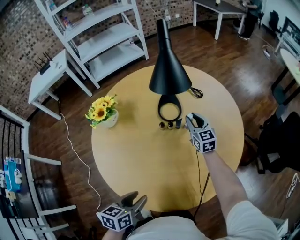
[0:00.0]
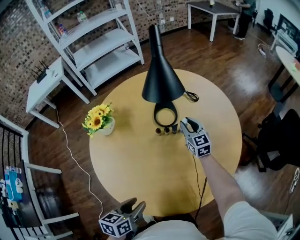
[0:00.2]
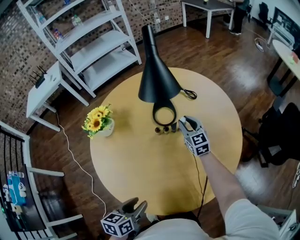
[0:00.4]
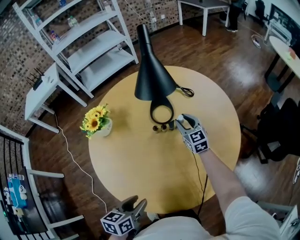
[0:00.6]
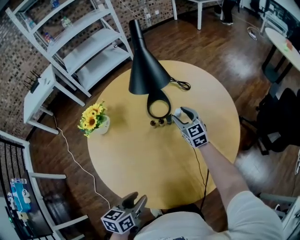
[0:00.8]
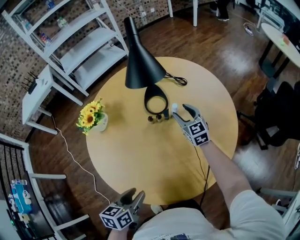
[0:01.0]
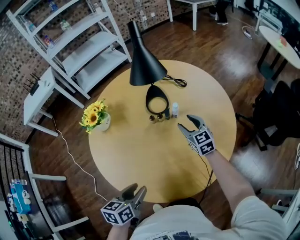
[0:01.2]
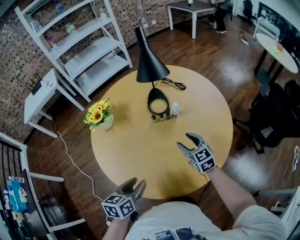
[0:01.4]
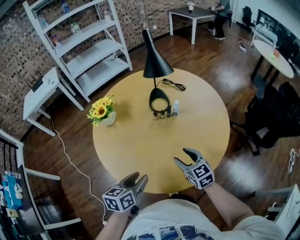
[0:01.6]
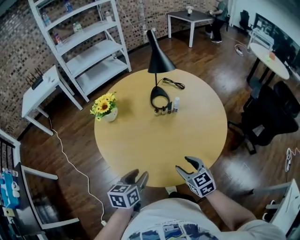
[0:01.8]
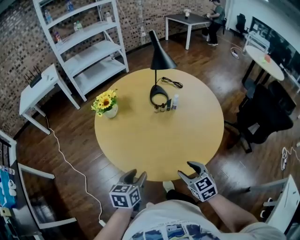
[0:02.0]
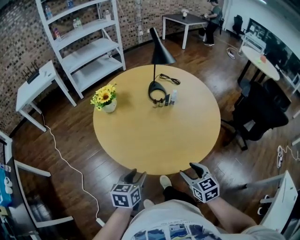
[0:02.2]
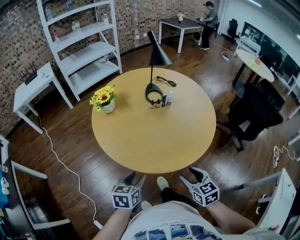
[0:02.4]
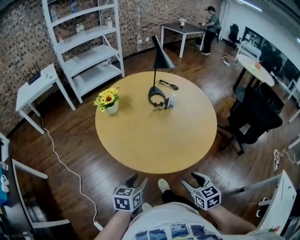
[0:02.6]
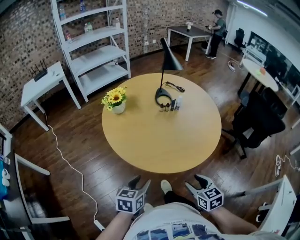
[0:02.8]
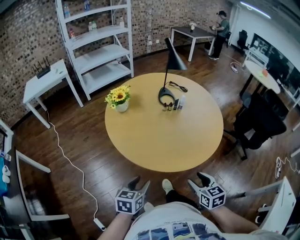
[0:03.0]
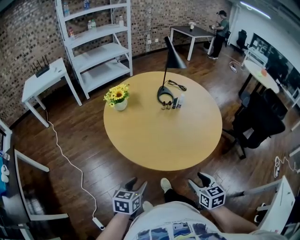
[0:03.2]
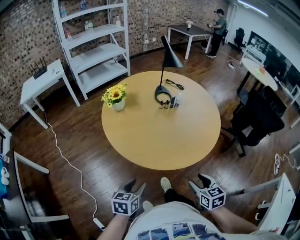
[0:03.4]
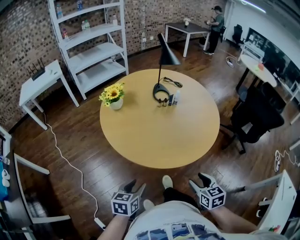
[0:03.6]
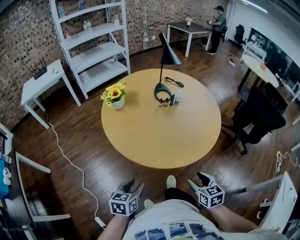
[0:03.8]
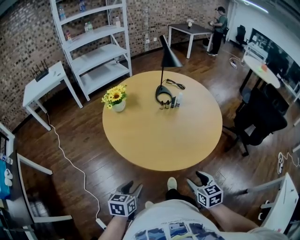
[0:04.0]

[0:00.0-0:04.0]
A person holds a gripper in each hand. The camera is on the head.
0:00.0 to 0:01.4: The right gripper is displaced backward by about 20 cm, and opens its fingers.
0:01.4 to 0:02.6: The left gripper moves backward and to the left, about 20 cm. The right gripper goes about 40 cm backward.
0:02.6 to 0:04.0: The left gripper shifts about 5 cm backward.

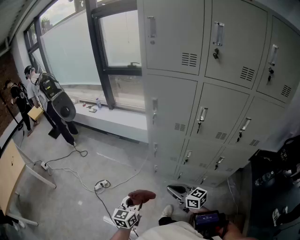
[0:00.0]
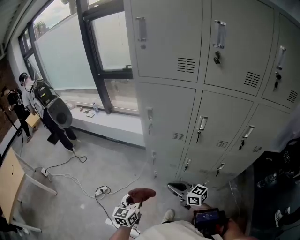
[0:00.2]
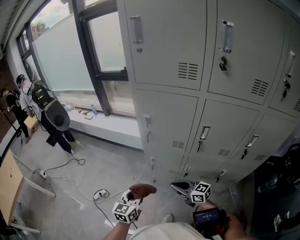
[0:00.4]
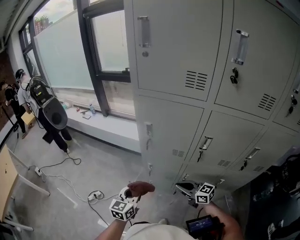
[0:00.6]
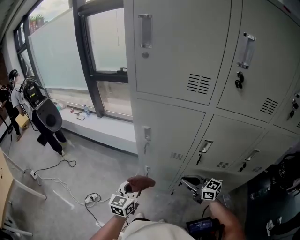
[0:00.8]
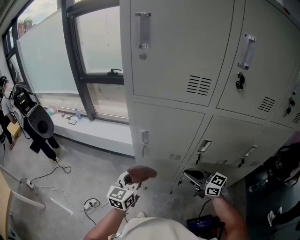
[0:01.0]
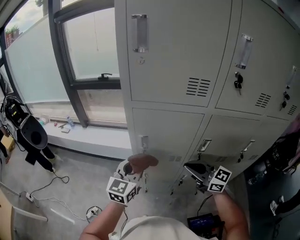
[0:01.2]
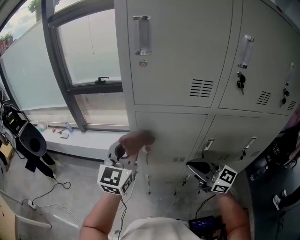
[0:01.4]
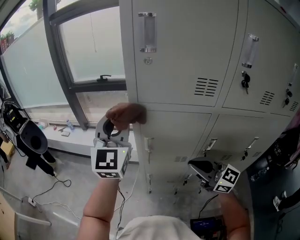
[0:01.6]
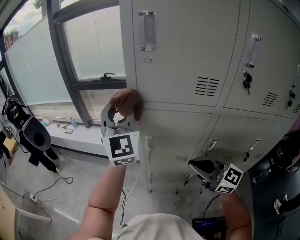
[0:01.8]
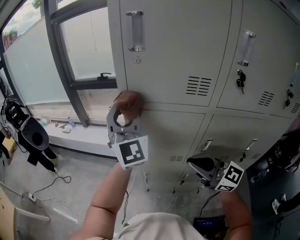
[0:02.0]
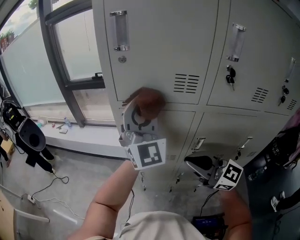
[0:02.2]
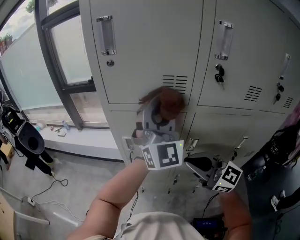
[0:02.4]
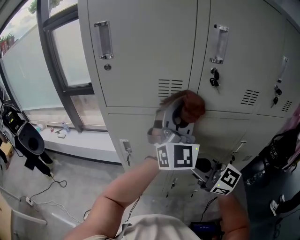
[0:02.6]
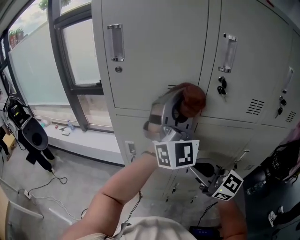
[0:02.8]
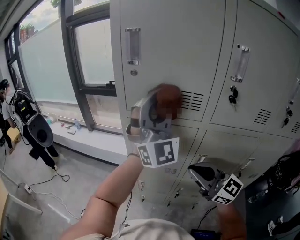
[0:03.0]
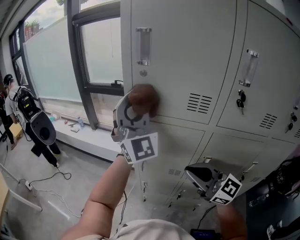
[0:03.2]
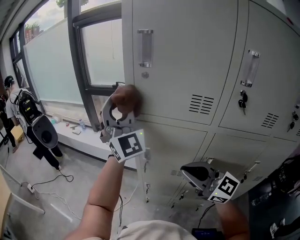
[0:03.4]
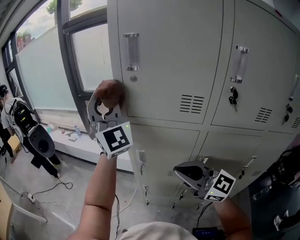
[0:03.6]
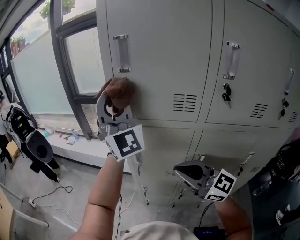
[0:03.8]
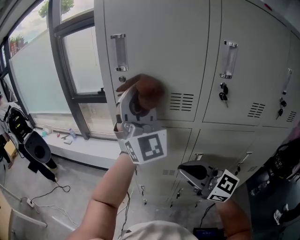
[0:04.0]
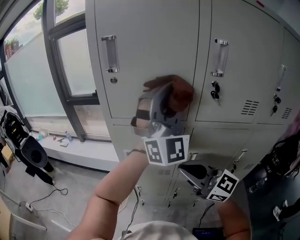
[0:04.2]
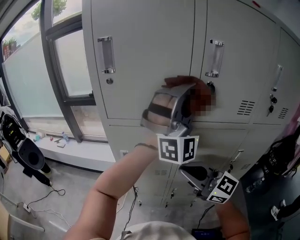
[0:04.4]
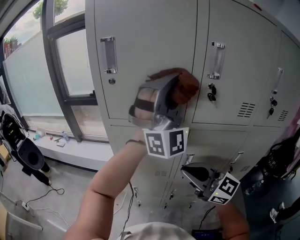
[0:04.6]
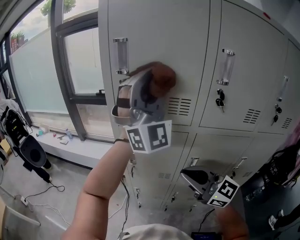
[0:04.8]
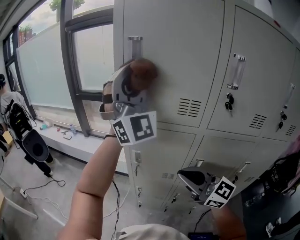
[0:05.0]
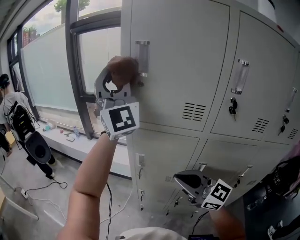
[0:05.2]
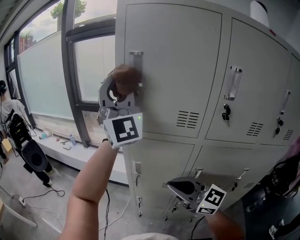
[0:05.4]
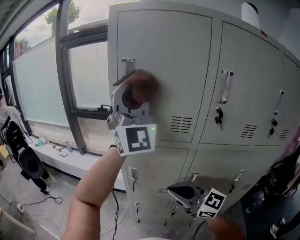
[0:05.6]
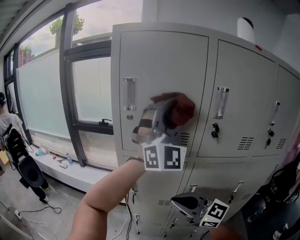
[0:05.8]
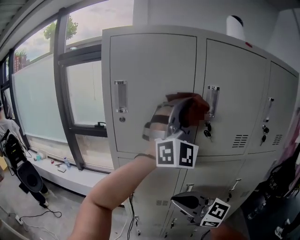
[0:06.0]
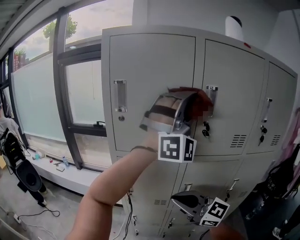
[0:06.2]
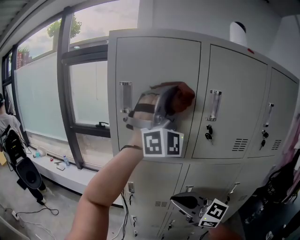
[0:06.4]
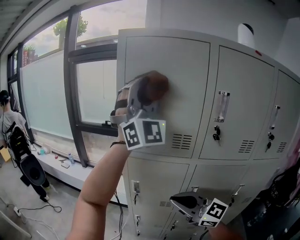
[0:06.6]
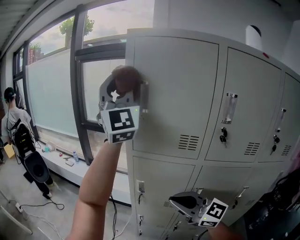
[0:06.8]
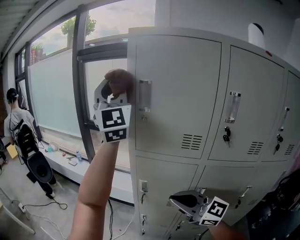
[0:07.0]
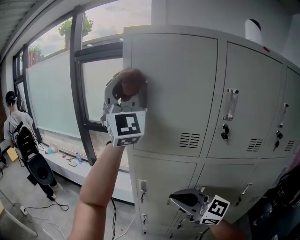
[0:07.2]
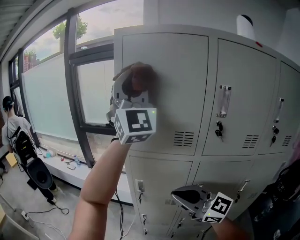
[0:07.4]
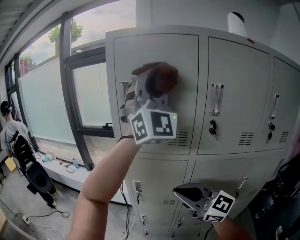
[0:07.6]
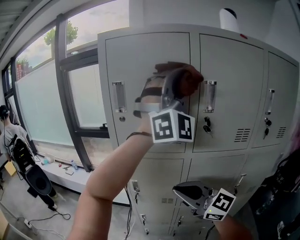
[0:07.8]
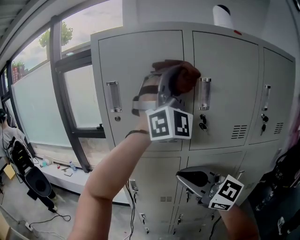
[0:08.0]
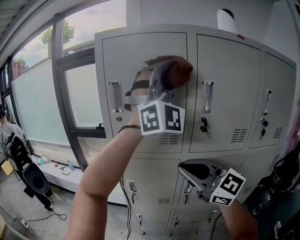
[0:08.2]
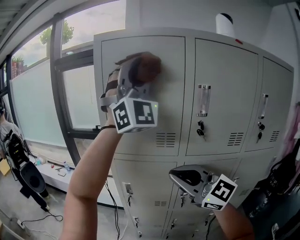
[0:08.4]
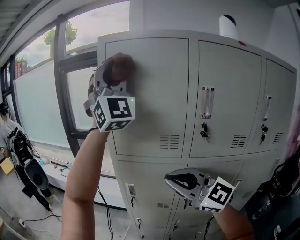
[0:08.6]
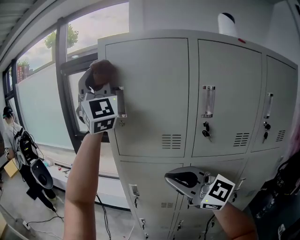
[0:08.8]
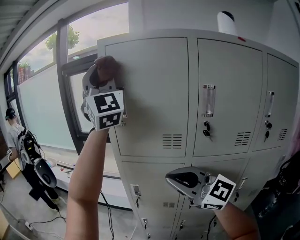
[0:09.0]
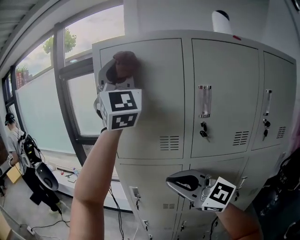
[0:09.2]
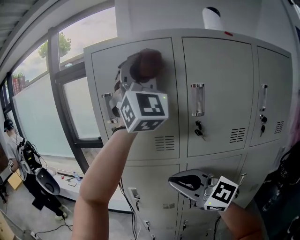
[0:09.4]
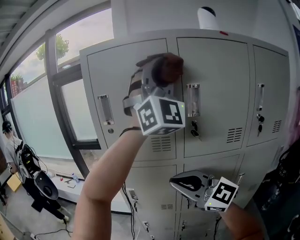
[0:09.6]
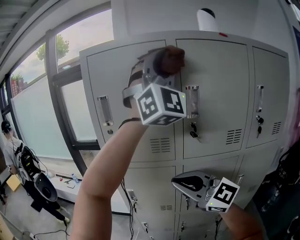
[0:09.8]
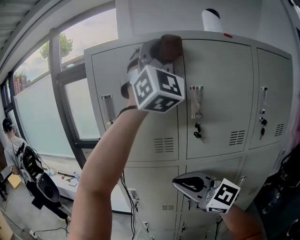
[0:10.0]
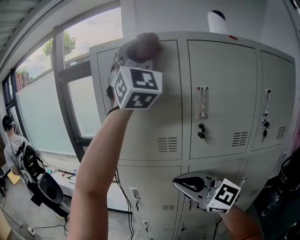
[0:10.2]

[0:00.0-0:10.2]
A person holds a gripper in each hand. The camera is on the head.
0:00.0 to 0:01.4: The left gripper travels forward and upward by approximately 50 cm, and turns by approximately 30 degrees; the right gripper moves forward, upward and to the right, about 35 cm, and changes its angle by roughly 30 degrees.
0:01.4 to 0:03.0: The left gripper travels upward and to the right by roughly 25 cm, and tips its fingers upward by roughly 30 degrees. The right gripper moves upward, some 10 cm.
0:03.0 to 0:04.4: The left gripper moves about 15 cm, and swivels about 20 degrees.
0:04.4 to 0:05.8: The right gripper shifts about 5 cm to the left. The left gripper heads upward, covering about 5 cm, and goes to the left and returns, roughly 25 cm each way.
0:05.8 to 0:07.2: The left gripper ends up some 20 cm from where it was, and turns by roughly 20 degrees.
0:07.2 to 0:08.8: The left gripper goes about 5 cm upward, and moves some 20 cm to the right and comes back. Meanwhile the right gripper moves upward, some 10 cm.
0:08.8 to 0:10.2: The left gripper heads to the right, backward and upward, covering roughly 20 cm.

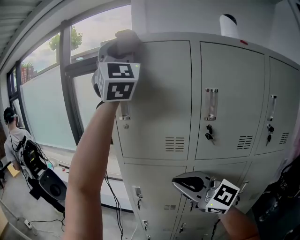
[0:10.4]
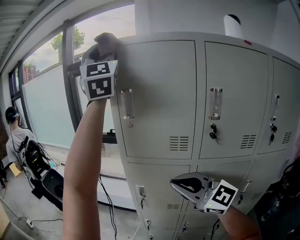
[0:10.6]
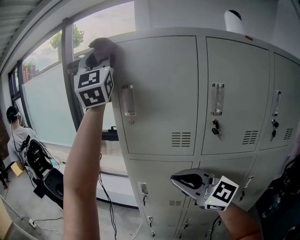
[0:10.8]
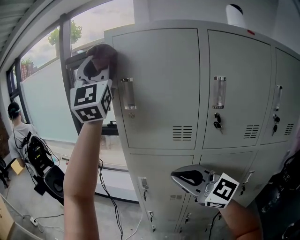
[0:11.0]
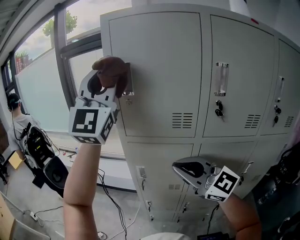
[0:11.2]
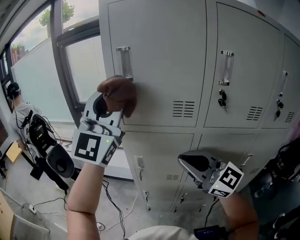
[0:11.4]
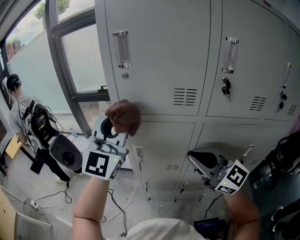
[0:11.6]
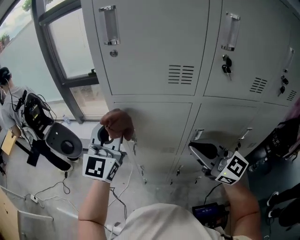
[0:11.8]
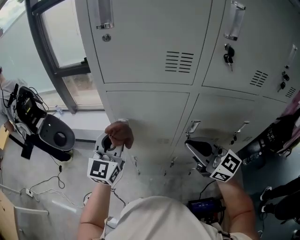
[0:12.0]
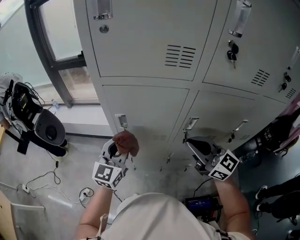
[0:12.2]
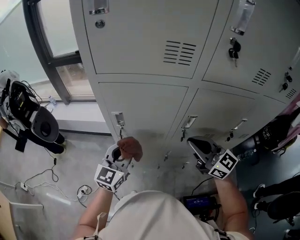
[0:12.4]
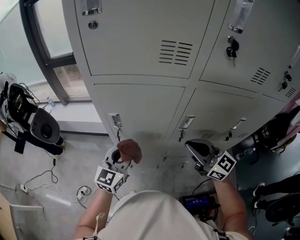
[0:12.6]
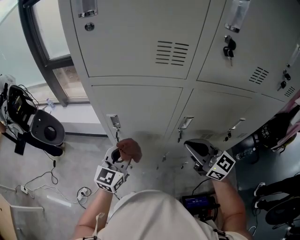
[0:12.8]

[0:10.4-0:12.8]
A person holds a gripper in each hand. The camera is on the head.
0:10.4 to 0:11.6: The right gripper shifts approximately 5 cm downward. The left gripper is displaced downward by approximately 35 cm, and swivels about 40 degrees.
0:11.6 to 0:12.8: The right gripper moves downward and to the right, approximately 15 cm, while the left gripper travels downward by some 30 cm, and changes its angle by some 40 degrees.

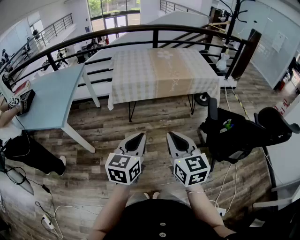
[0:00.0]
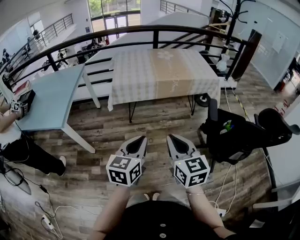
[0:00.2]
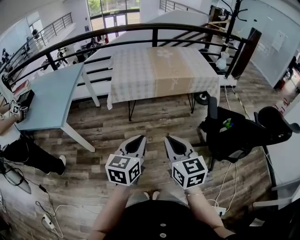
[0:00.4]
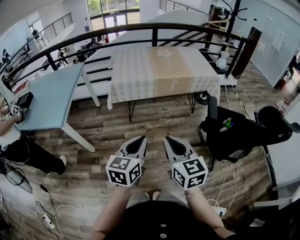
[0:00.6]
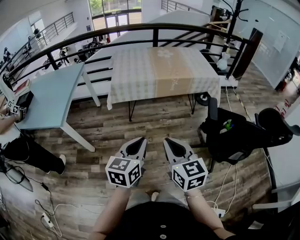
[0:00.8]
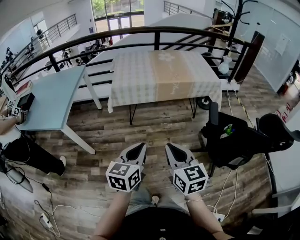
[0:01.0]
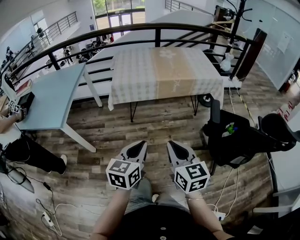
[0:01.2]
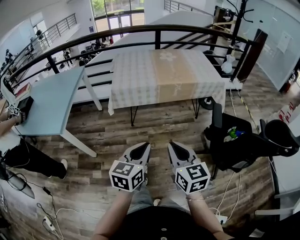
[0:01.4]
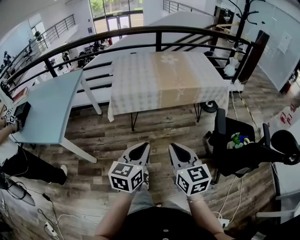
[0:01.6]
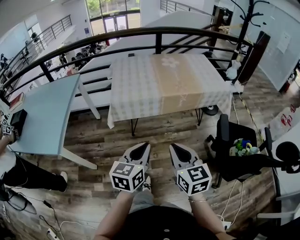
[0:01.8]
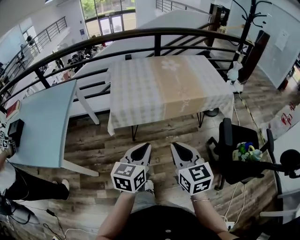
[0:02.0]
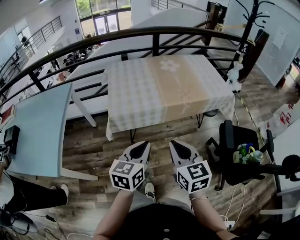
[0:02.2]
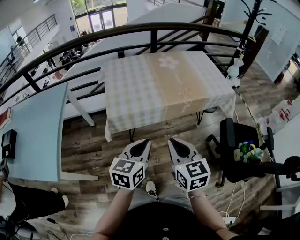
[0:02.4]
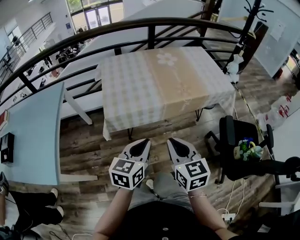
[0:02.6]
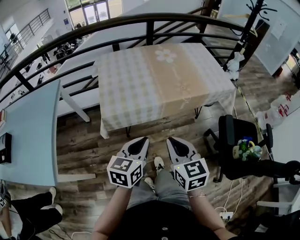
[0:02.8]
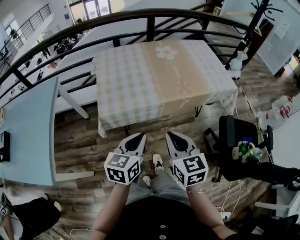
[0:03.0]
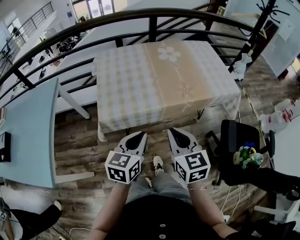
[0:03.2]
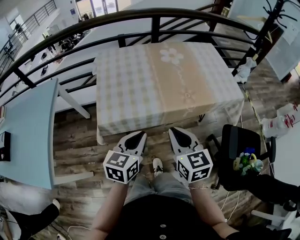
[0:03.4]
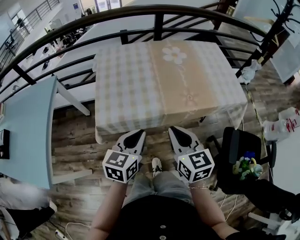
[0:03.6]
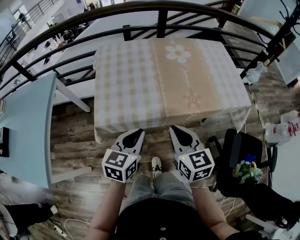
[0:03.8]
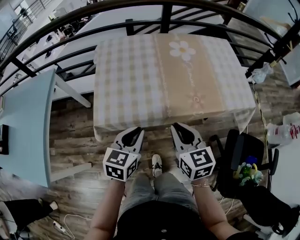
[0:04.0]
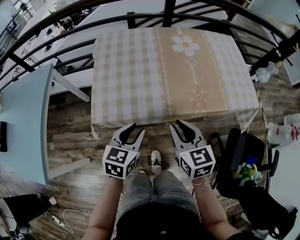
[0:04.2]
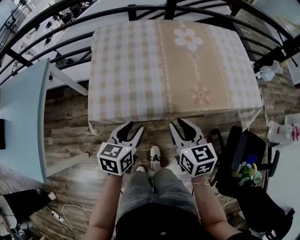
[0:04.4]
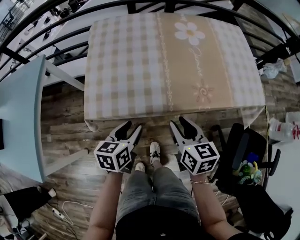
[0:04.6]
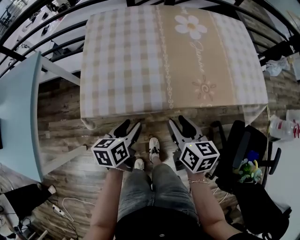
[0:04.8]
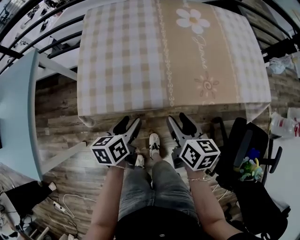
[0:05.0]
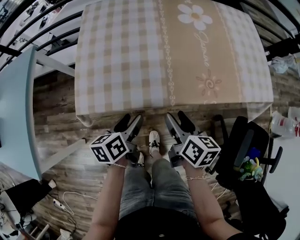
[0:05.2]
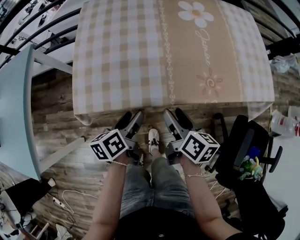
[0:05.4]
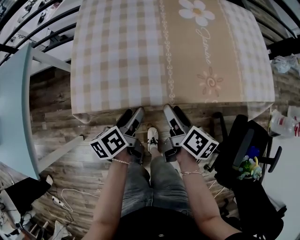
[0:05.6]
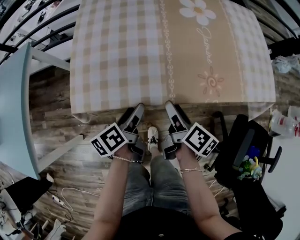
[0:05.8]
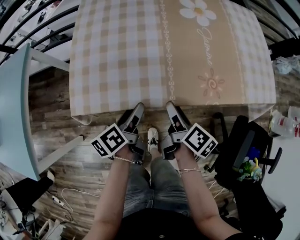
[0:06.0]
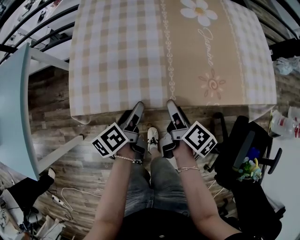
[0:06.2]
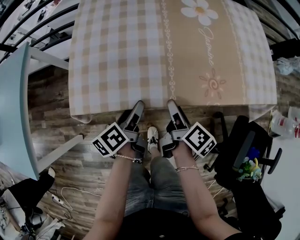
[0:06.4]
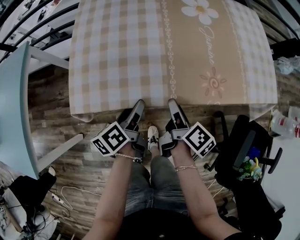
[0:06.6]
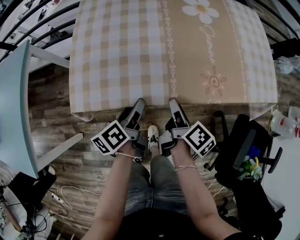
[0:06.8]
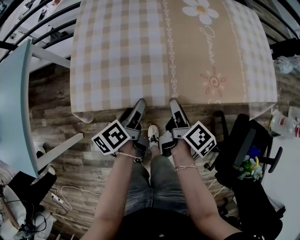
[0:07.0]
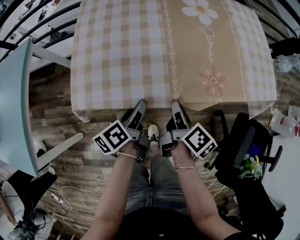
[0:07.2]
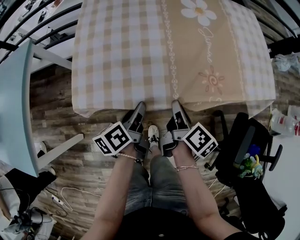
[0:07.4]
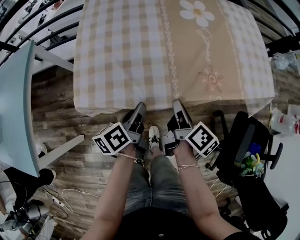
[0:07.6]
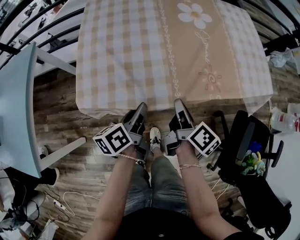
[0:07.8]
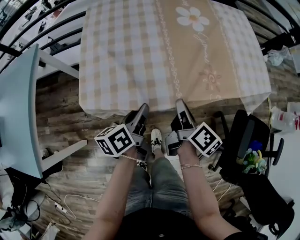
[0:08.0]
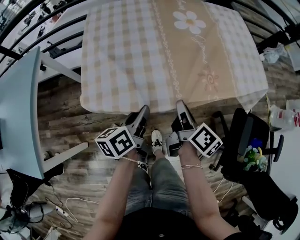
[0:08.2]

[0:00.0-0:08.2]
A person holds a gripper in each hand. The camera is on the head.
0:00.0 to 0:01.6: The grippers both shift forward by some 10 cm.
0:01.6 to 0:03.2: Both grippers move forward, some 30 cm.
0:03.2 to 0:05.0: The right gripper heads forward and downward, covering approximately 25 cm, changes its angle by approximately 30 degrees, and opens, while the left gripper moves downward and forward, roughly 20 cm, rotates some 40 degrees, and opens.
0:05.0 to 0:06.6: The left gripper shifts roughly 5 cm forward, and swivels approximately 30 degrees. The right gripper shifts by roughly 5 cm, and turns by approximately 40 degrees.
0:06.6 to 0:08.2: The two grippers go approximately 10 cm upward. The left gripper closes. Meanwhile the right gripper closes up.
